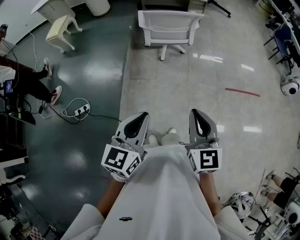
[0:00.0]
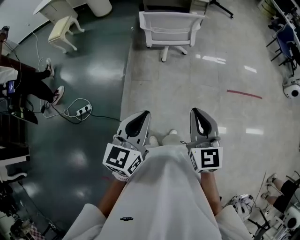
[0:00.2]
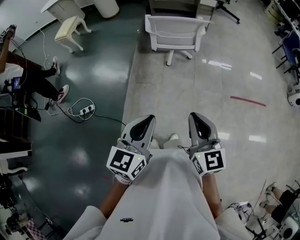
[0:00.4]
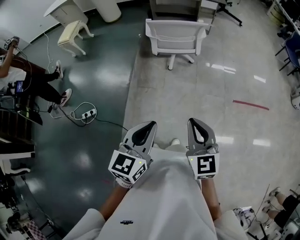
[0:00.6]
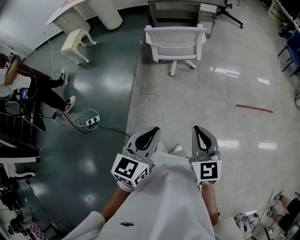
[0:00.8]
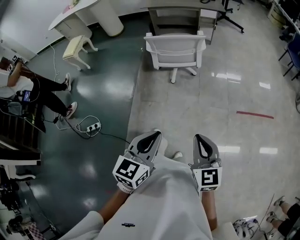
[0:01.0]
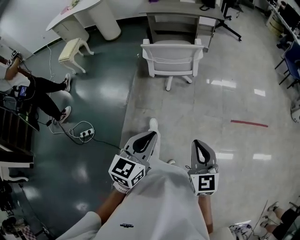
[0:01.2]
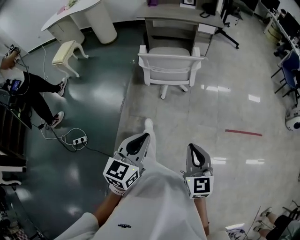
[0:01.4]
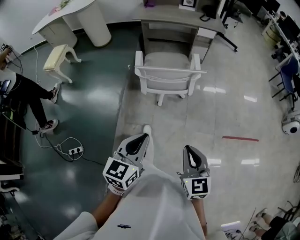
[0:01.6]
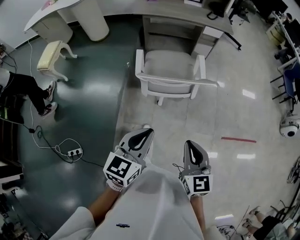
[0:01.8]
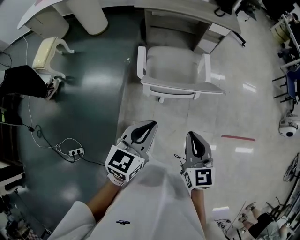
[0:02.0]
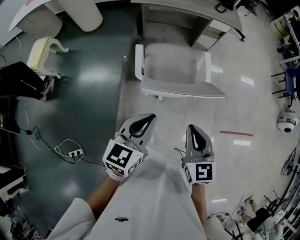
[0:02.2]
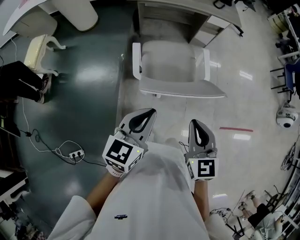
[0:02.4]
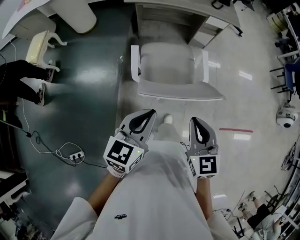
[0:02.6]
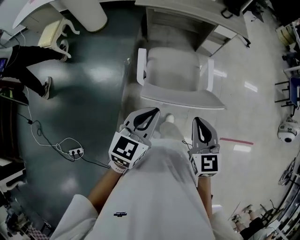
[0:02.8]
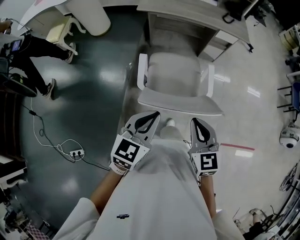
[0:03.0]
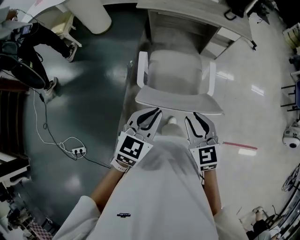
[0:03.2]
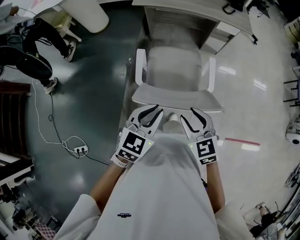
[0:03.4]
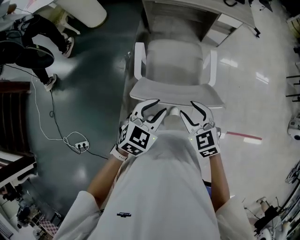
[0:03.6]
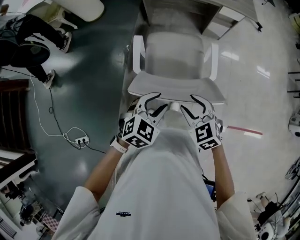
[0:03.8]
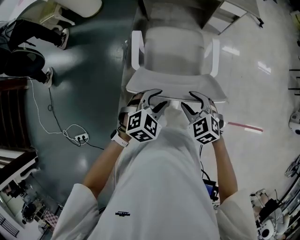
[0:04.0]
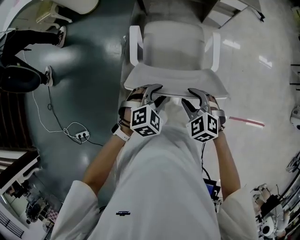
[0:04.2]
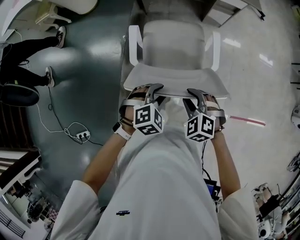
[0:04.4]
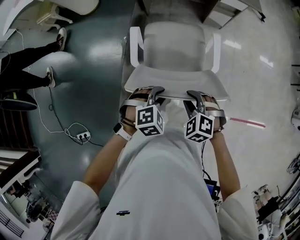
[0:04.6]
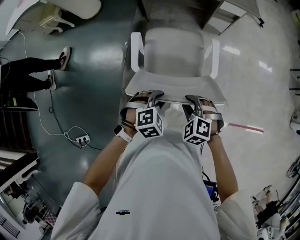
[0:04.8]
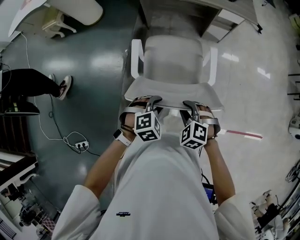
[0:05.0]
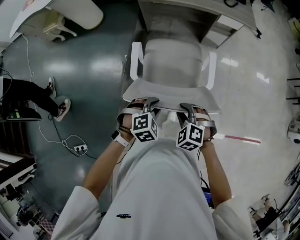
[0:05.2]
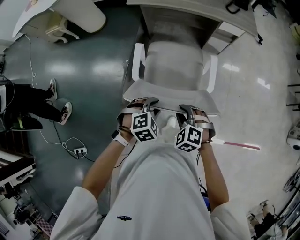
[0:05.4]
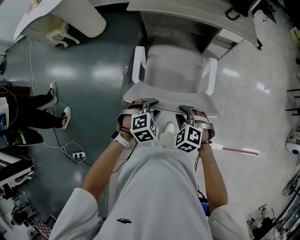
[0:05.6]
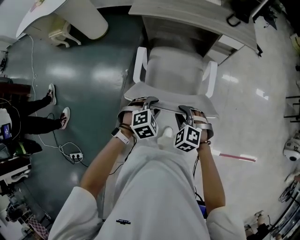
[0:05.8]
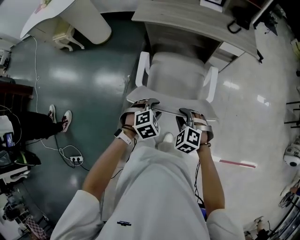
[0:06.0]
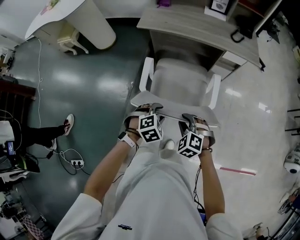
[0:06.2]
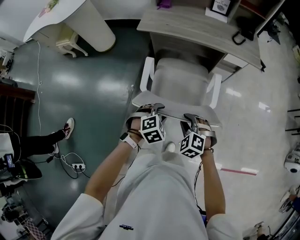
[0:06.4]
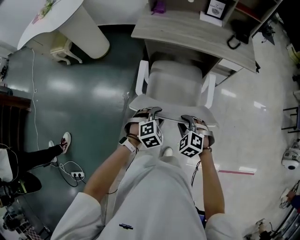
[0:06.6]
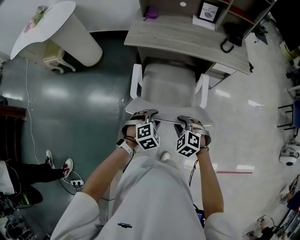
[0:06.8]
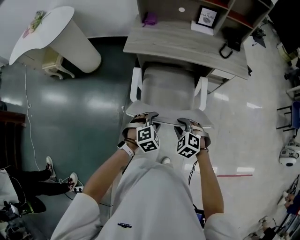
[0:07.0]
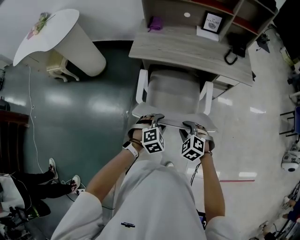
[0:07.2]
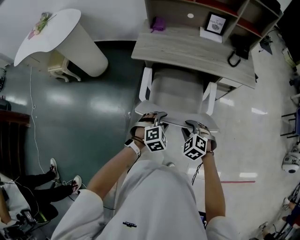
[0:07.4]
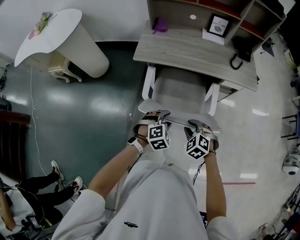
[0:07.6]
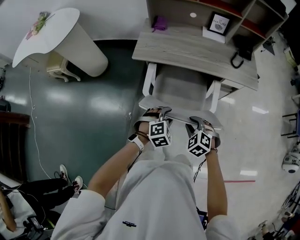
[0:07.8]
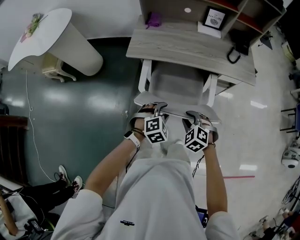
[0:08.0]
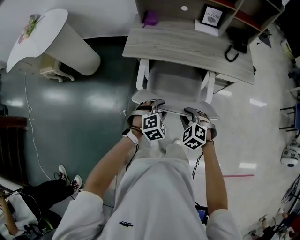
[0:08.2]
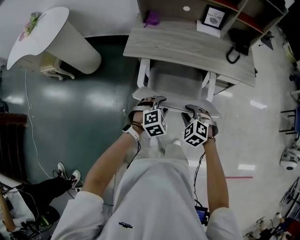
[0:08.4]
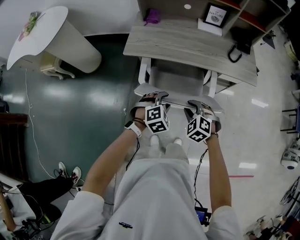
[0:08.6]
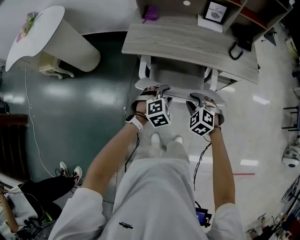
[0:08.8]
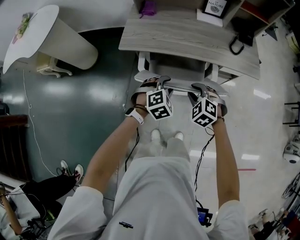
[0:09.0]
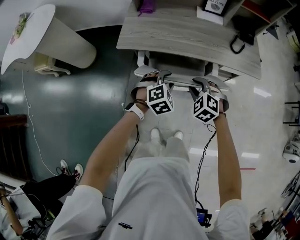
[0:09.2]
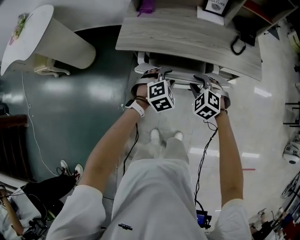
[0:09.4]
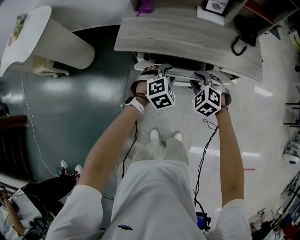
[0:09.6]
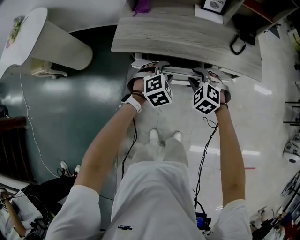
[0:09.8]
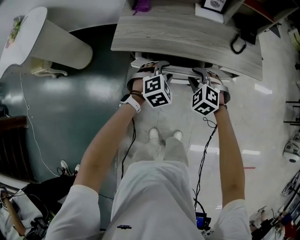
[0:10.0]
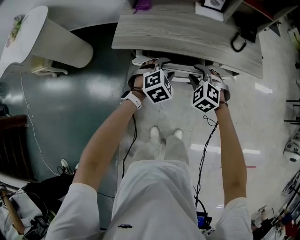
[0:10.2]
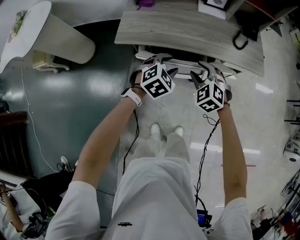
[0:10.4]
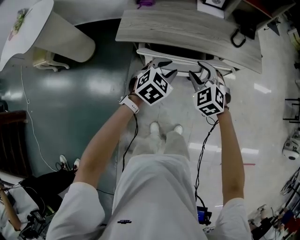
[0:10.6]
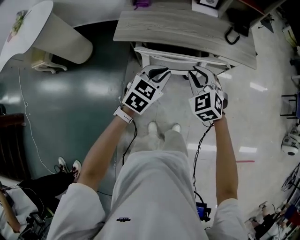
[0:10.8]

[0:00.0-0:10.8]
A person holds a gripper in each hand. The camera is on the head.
0:00.0 to 0:01.6: Both grippers travel together forward, approximately 30 cm.
0:01.6 to 0:03.0: Both grippers travel together forward, about 35 cm.
0:03.0 to 0:04.6: The grippers both shift downward by roughly 20 cm. The right gripper points its fingers approximately 30 degrees further downward, and opens up. The left gripper angles its fingers downward, by approximately 40 degrees, and opens up.
0:04.6 to 0:06.2: Both grippers travel together forward, some 15 cm.
0:06.2 to 0:07.8: Both grippers move forward, about 25 cm.
0:07.8 to 0:09.2: The two grippers go about 15 cm forward.
0:09.2 to 0:10.8: The grippers both shift upward by some 10 cm. The right gripper changes its angle by about 20 degrees; the left gripper changes its angle by roughly 40 degrees, and closes.

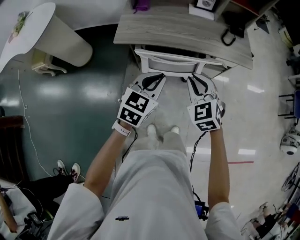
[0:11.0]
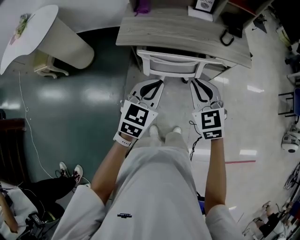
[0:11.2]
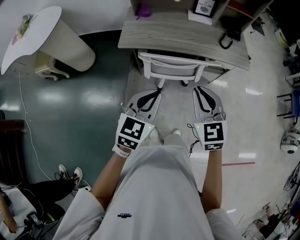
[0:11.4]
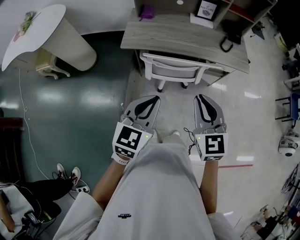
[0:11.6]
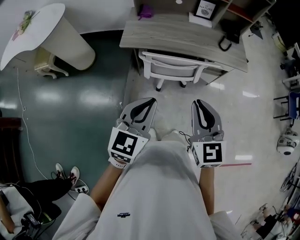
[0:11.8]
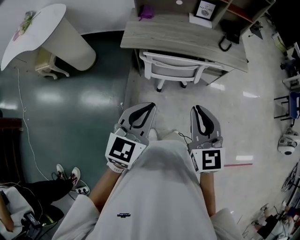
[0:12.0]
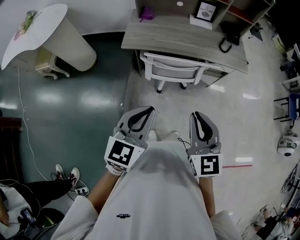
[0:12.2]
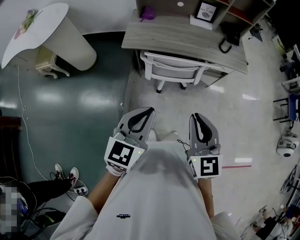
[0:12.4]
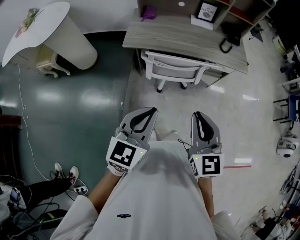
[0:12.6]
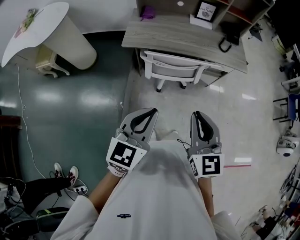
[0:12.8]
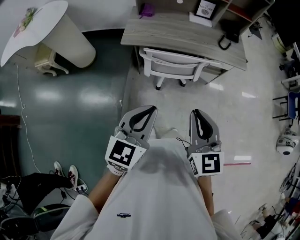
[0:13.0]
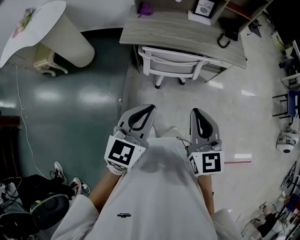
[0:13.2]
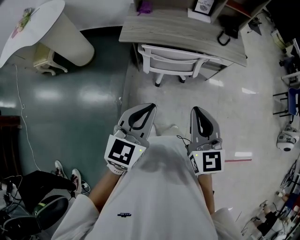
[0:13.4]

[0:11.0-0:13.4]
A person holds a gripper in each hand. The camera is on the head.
0:11.0 to 0:12.2: The grippers both shift backward and upward by roughly 20 cm. The right gripper rotates about 30 degrees.
0:12.2 to 0:13.4: There are only small adjustments of the grippers.

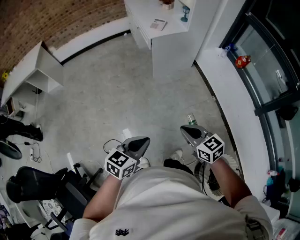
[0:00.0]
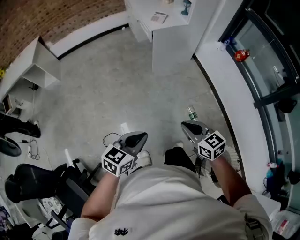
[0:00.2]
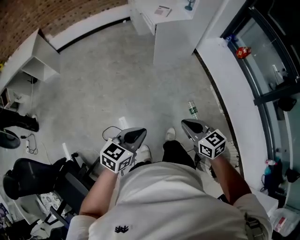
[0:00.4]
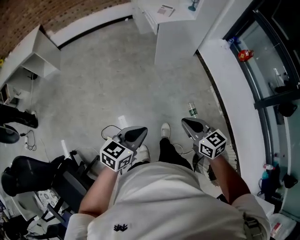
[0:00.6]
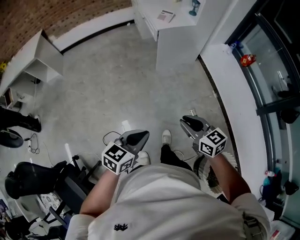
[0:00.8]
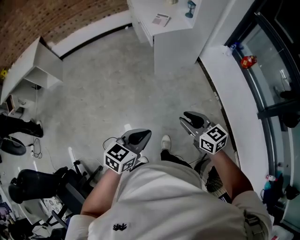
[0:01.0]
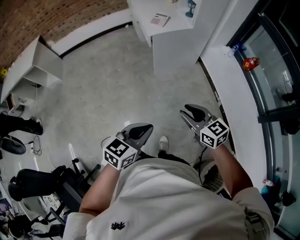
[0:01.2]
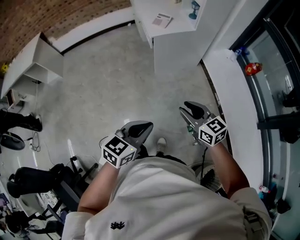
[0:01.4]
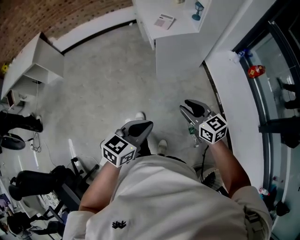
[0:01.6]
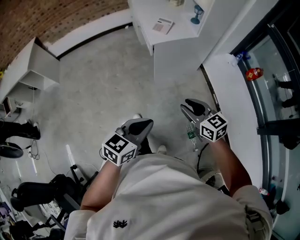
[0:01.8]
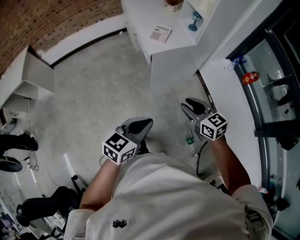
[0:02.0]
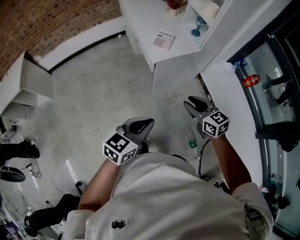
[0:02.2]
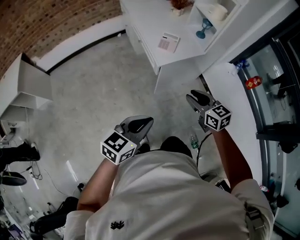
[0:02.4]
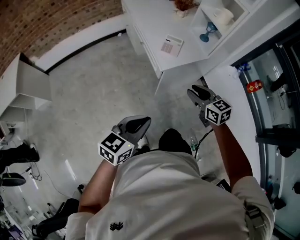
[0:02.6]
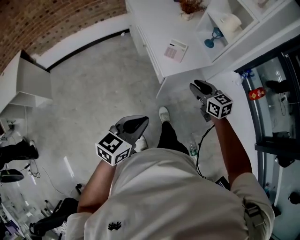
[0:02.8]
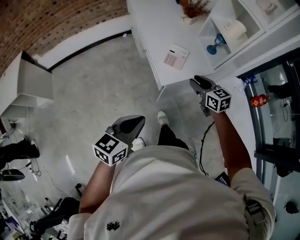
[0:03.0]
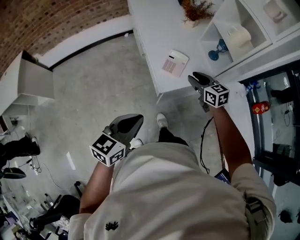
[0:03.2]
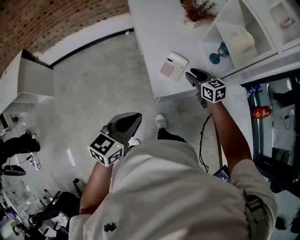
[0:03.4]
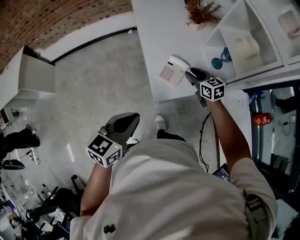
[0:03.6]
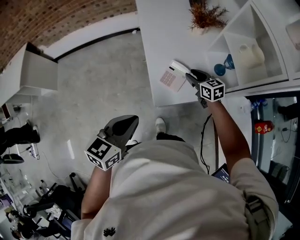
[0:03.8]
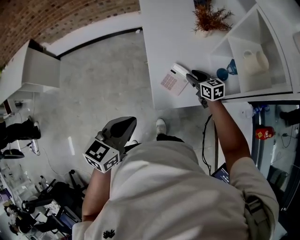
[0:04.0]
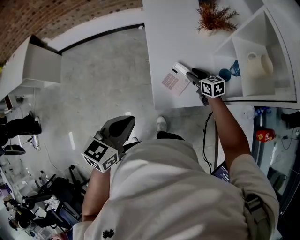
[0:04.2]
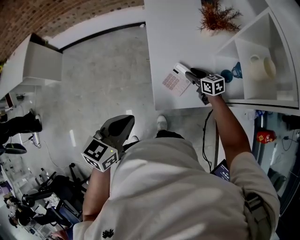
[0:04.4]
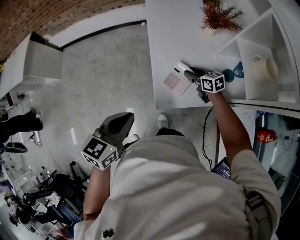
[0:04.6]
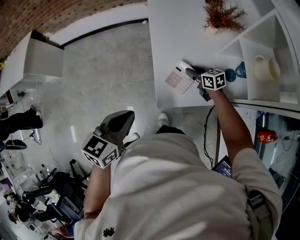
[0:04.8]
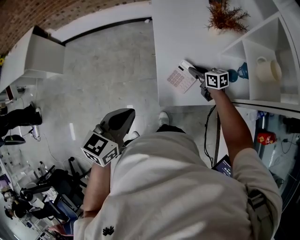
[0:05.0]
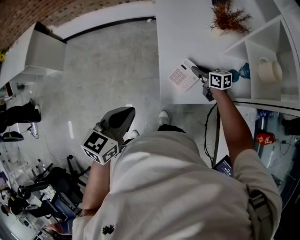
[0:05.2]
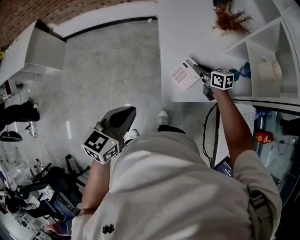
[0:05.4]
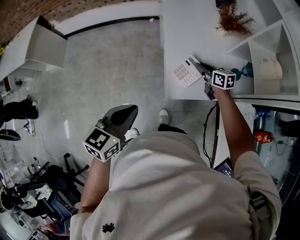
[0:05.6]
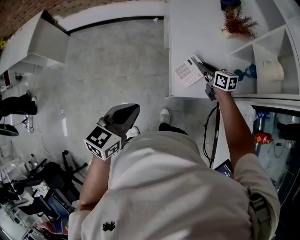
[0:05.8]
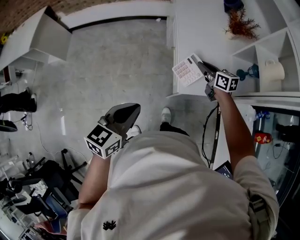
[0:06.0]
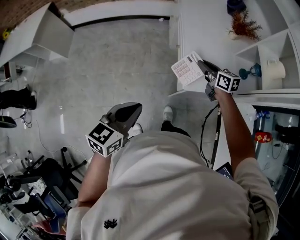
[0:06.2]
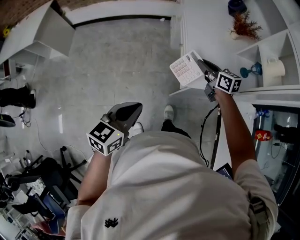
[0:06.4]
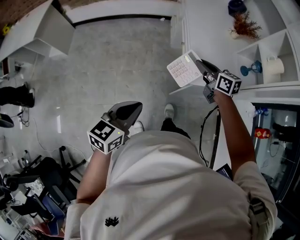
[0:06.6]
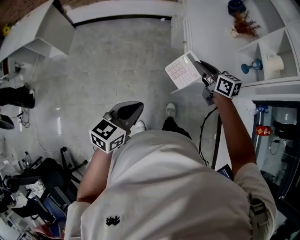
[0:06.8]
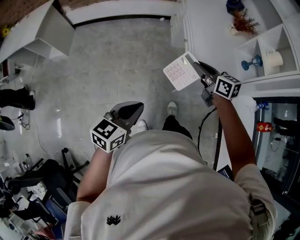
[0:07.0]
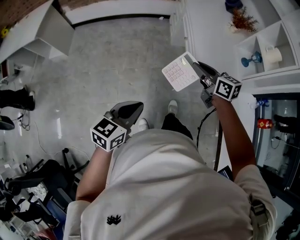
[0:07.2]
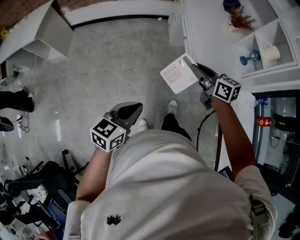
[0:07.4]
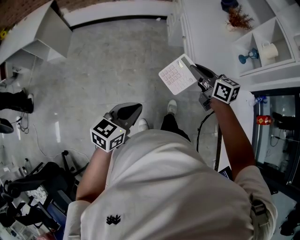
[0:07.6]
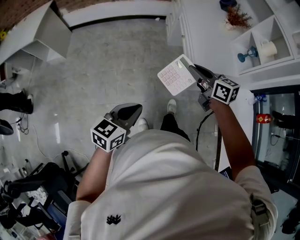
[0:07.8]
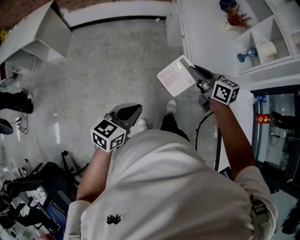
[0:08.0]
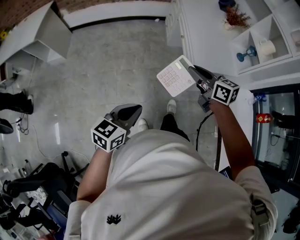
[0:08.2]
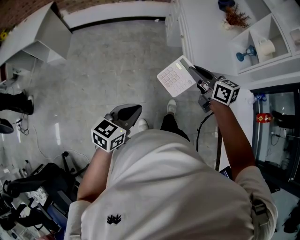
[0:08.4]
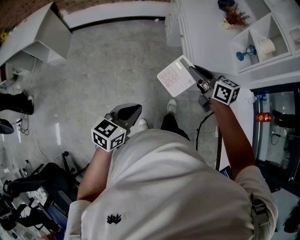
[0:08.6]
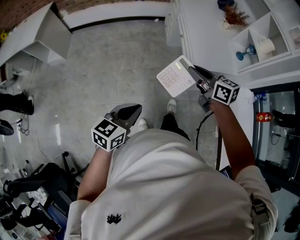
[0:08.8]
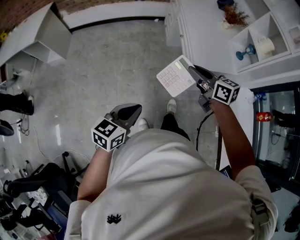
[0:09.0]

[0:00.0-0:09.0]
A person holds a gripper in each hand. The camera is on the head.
0:00.0 to 0:01.6: The two grippers go roughly 25 cm forward. The right gripper opens up.
0:01.6 to 0:03.0: Both grippers are carried forward, some 50 cm.
0:03.0 to 0:04.4: The left gripper moves forward, roughly 20 cm, while the right gripper heads forward and downward, covering approximately 30 cm, and swivels some 20 degrees.
0:04.4 to 0:06.0: The right gripper heads to the left and upward, covering approximately 15 cm, and closes up. The left gripper heads to the left and backward, covering about 15 cm.
0:06.0 to 0:07.6: The left gripper moves backward and to the left, some 20 cm; the right gripper travels backward, to the left and upward by roughly 30 cm.
0:07.6 to 0:09.0: The grippers stay close to where they were, moving slightly.

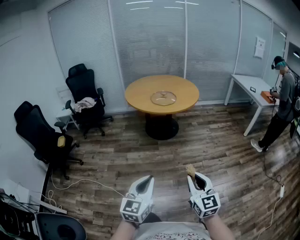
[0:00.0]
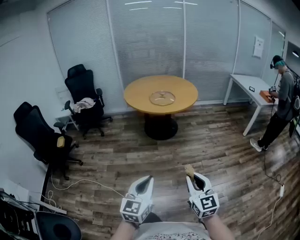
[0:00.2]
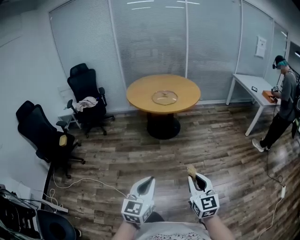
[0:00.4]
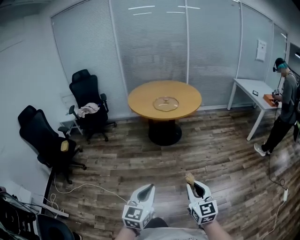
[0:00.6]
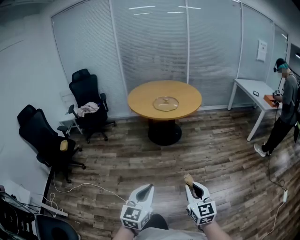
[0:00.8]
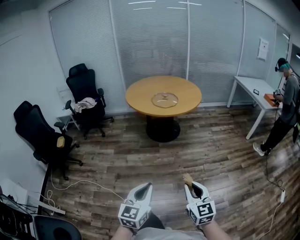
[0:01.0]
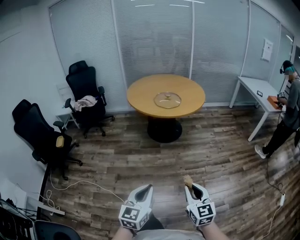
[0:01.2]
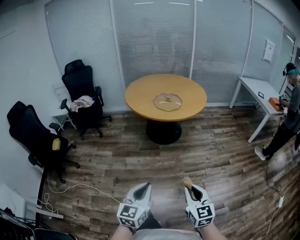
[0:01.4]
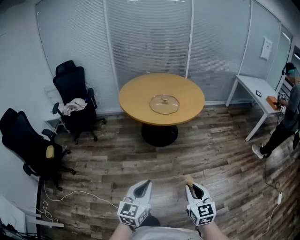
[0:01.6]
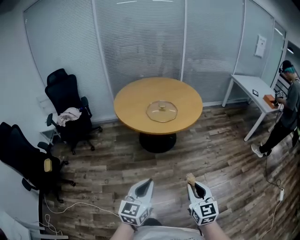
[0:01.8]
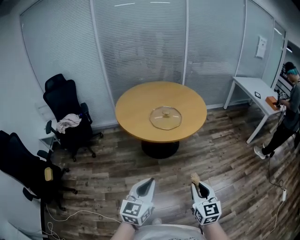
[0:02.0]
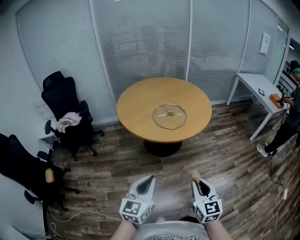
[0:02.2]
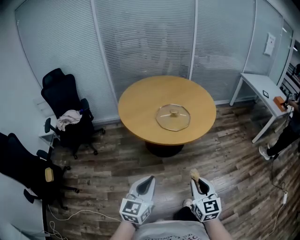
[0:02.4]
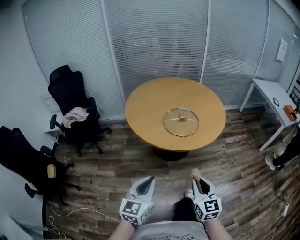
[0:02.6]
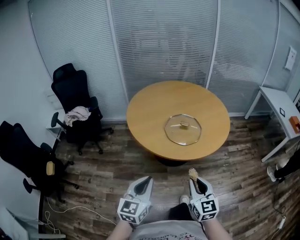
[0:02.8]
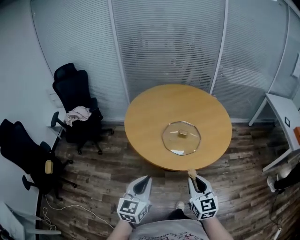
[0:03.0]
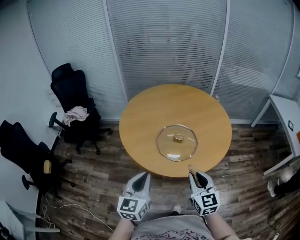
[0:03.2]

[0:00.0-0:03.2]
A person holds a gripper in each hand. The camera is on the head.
0:00.0 to 0:01.6: The two grippers go roughly 25 cm forward.
0:01.6 to 0:03.2: Both grippers are carried forward, approximately 50 cm.
